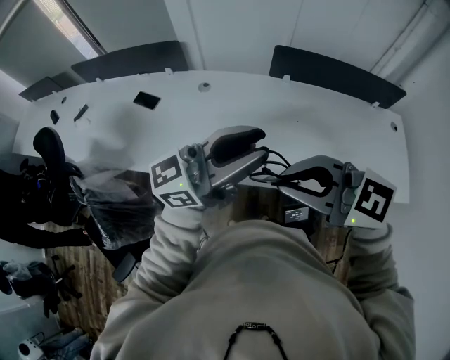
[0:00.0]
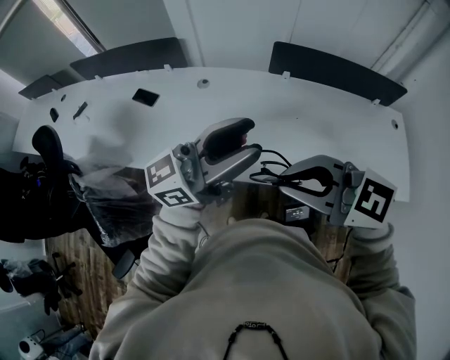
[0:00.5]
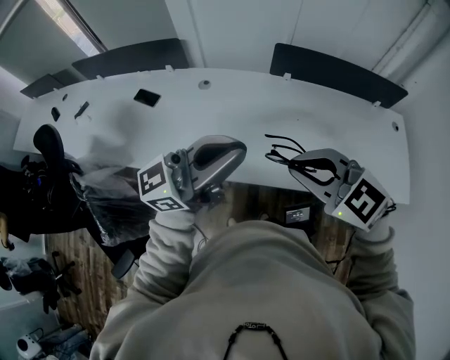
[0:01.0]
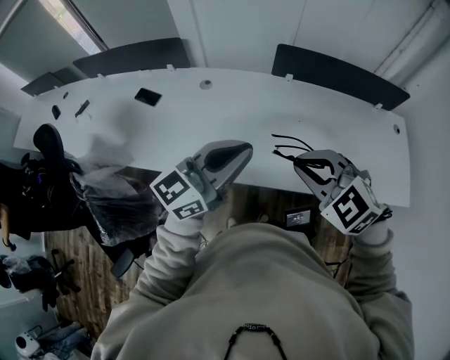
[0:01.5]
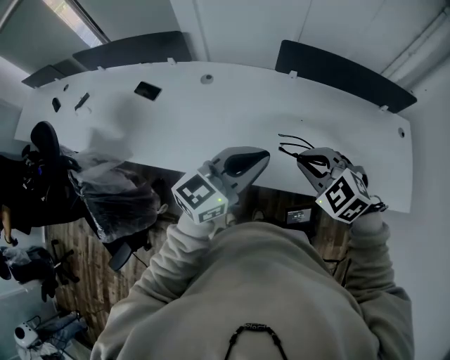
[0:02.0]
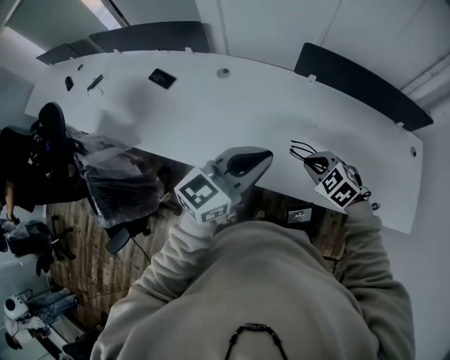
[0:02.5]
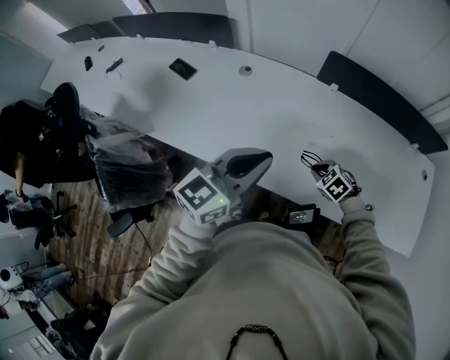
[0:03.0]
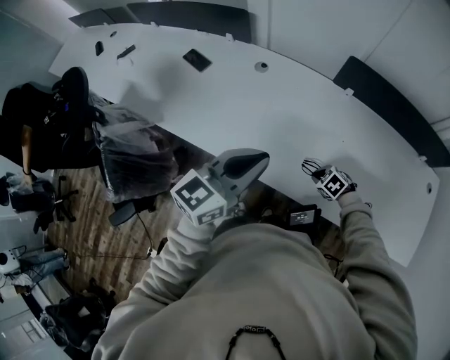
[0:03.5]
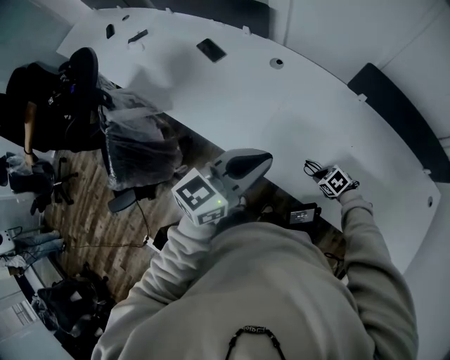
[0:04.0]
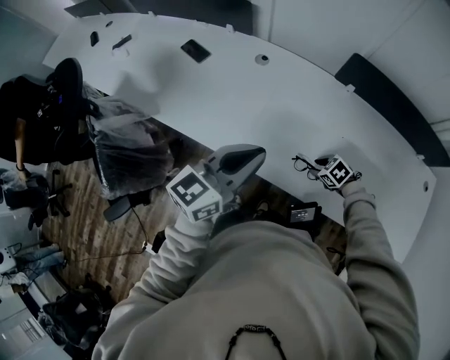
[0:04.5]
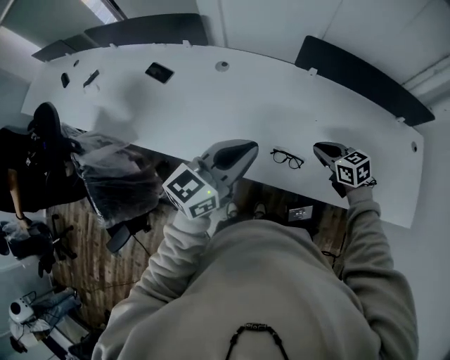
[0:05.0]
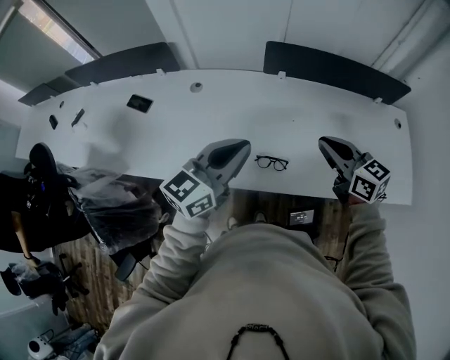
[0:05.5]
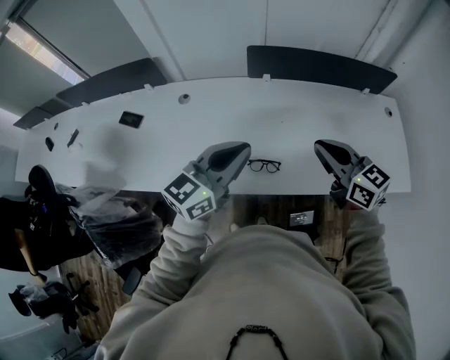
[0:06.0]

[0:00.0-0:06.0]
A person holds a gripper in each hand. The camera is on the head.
0:00.0 to 0:02.0: The two grippers go some 15 cm downward. The left gripper changes its angle by approximately 30 degrees, and closes its fingers; the right gripper tips its fingers downward by about 30 degrees.
0:02.0 to 0:04.0: The right gripper is displaced downward by about 35 cm, and turns by roughly 40 degrees. The left gripper ends up about 10 cm from where it was, and changes its angle by some 20 degrees.
0:04.0 to 0:06.0: The left gripper ends up approximately 15 cm from where it was, and changes its angle by about 20 degrees. Meanwhile the right gripper travels upward by roughly 40 cm, points its fingers approximately 60 degrees further upward, and opens, then closes again.

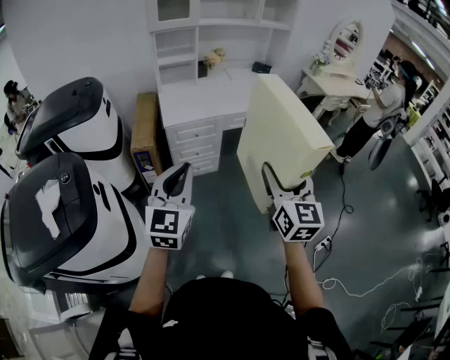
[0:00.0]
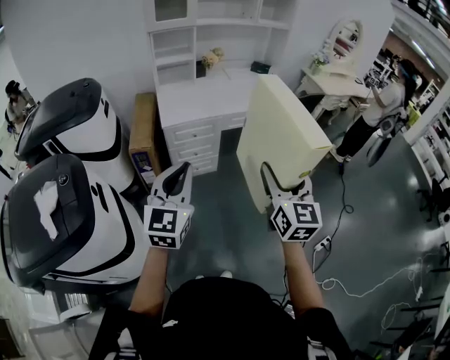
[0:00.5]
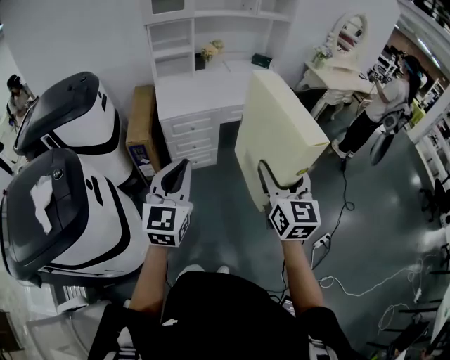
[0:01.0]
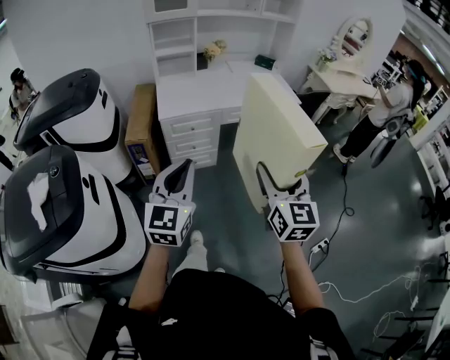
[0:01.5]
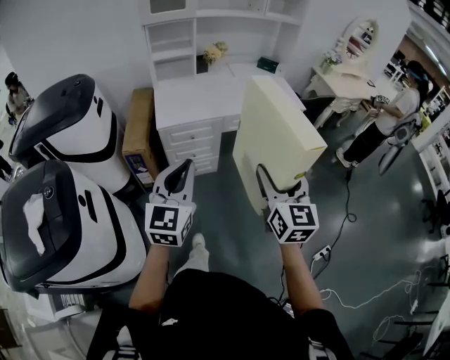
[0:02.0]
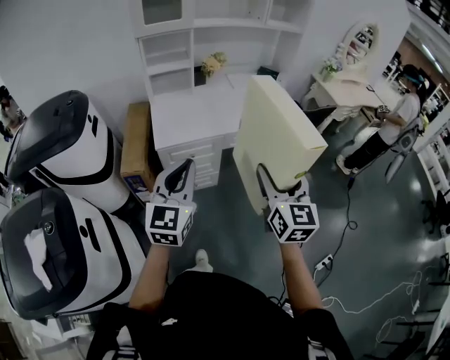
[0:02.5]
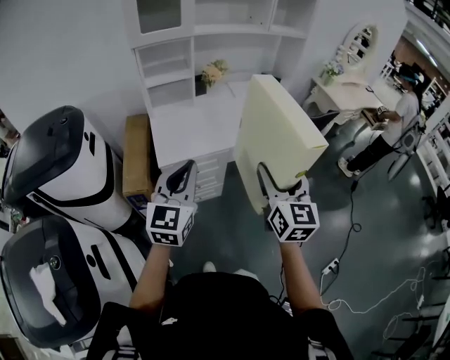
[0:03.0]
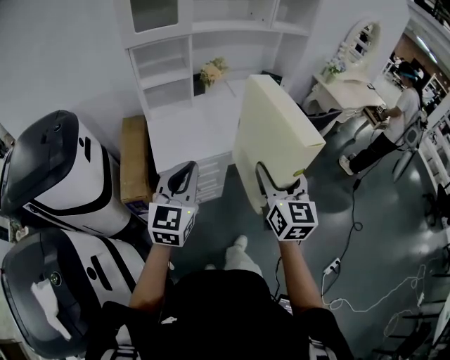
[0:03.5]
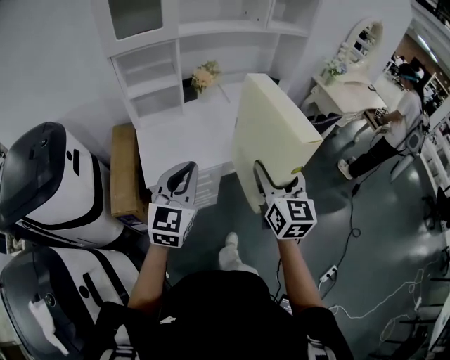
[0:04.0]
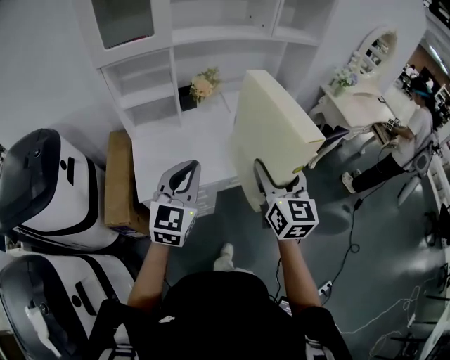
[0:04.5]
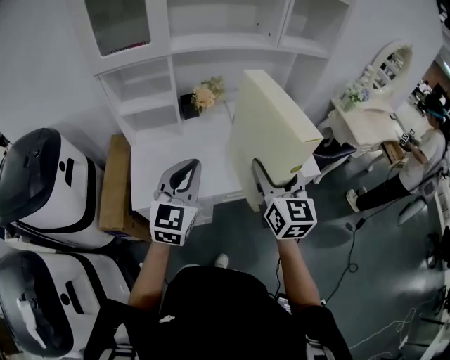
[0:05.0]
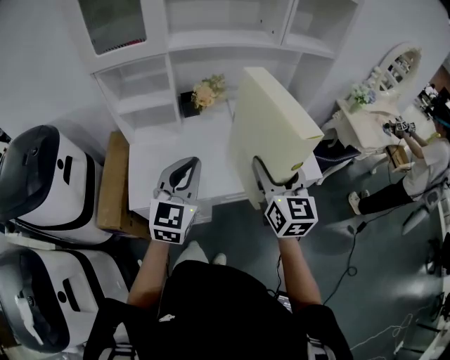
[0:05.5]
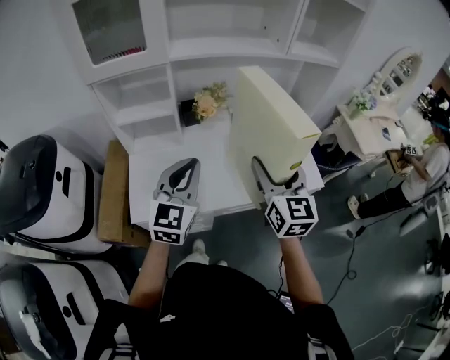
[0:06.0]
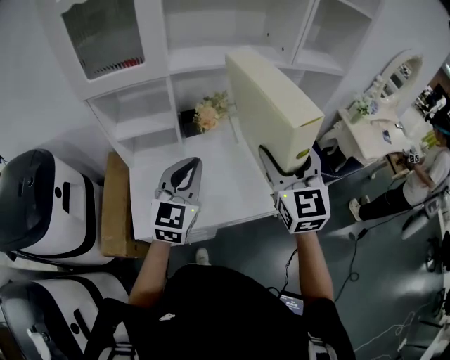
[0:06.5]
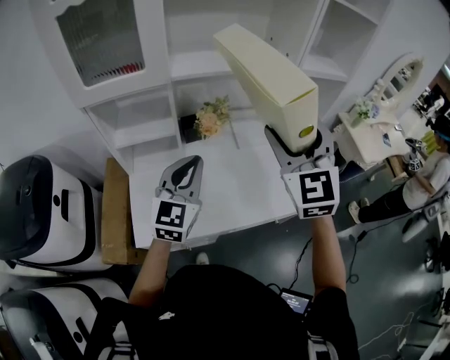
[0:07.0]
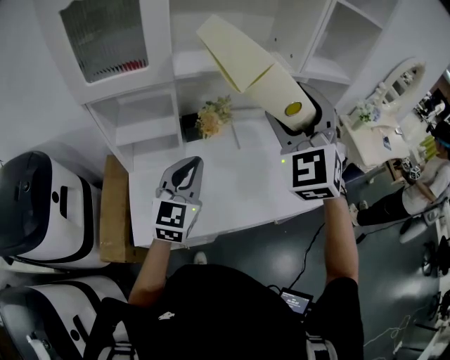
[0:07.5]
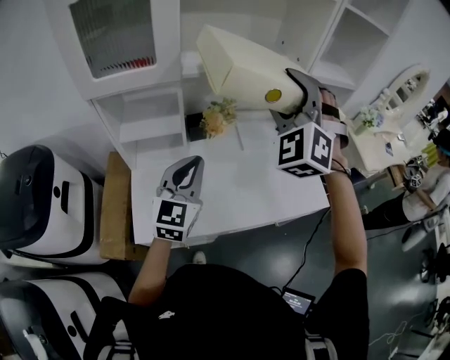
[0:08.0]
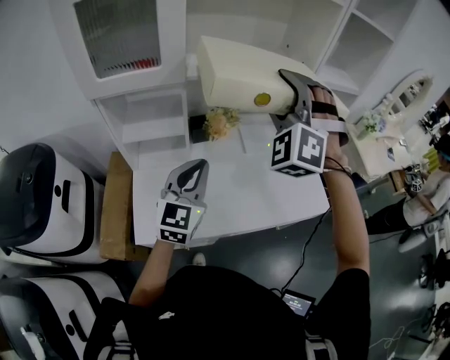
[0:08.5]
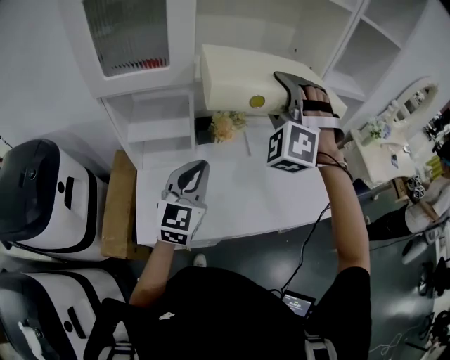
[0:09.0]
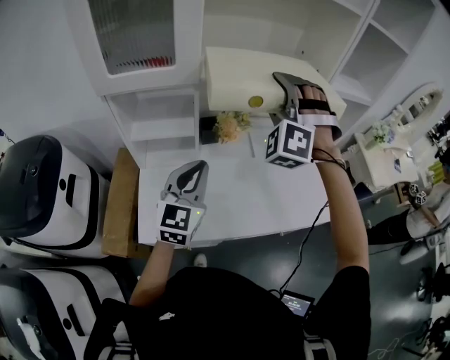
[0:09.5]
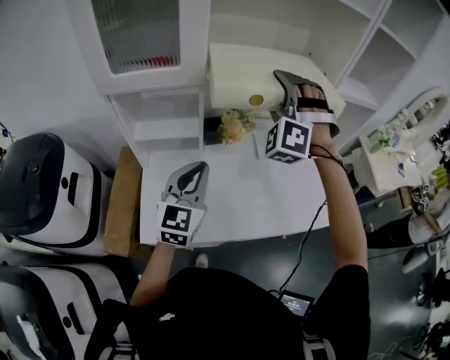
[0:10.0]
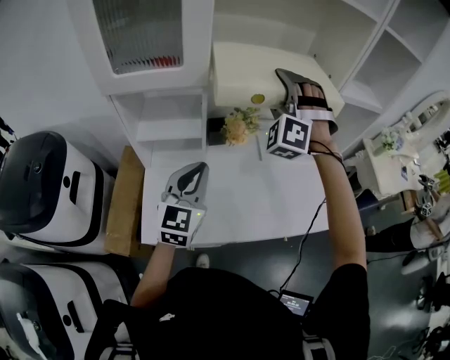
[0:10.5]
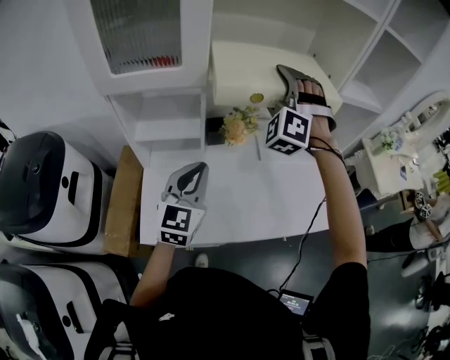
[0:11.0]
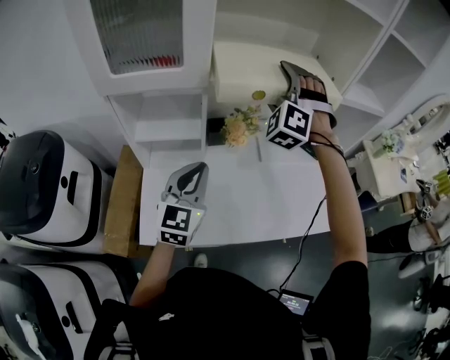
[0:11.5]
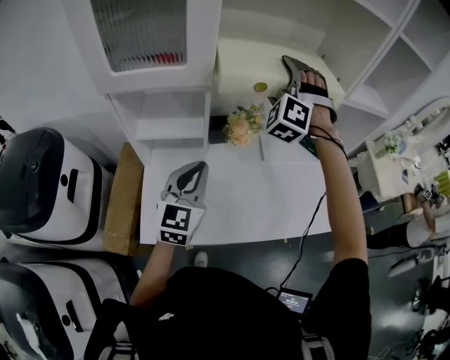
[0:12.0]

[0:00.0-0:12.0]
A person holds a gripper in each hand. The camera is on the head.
0:00.0 to 0:02.0: Both grippers travel together forward, about 10 cm.
0:02.0 to 0:04.0: The two grippers go about 35 cm forward.
0:04.0 to 0:06.0: Both grippers move forward, roughly 25 cm.
0:06.0 to 0:08.0: The right gripper travels forward, upward and to the left by about 25 cm, and rotates around the line of its fingers by roughly 70 degrees, counterclockwise from behind; the left gripper shifts about 10 cm forward.
0:08.0 to 0:10.0: The right gripper travels forward, to the left and downward by about 15 cm.
0:10.0 to 0:12.0: The right gripper is displaced forward by about 10 cm.

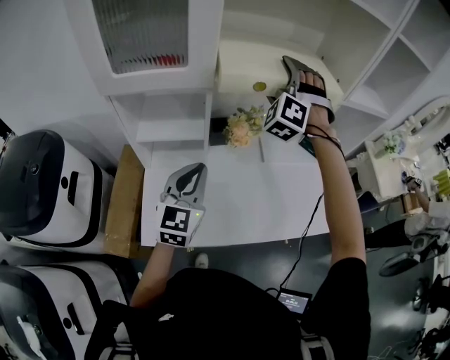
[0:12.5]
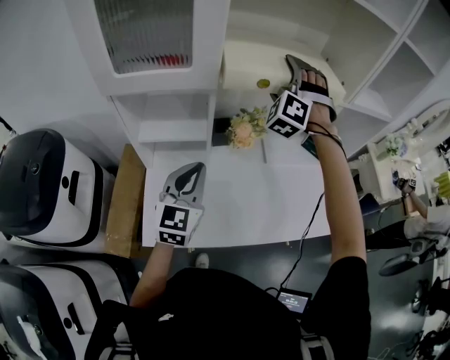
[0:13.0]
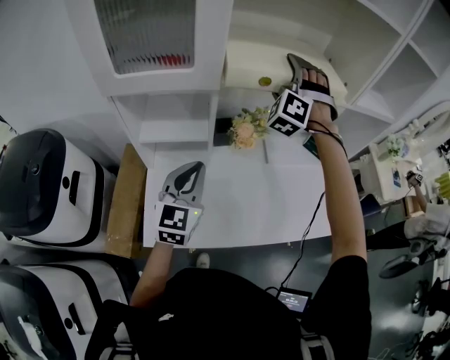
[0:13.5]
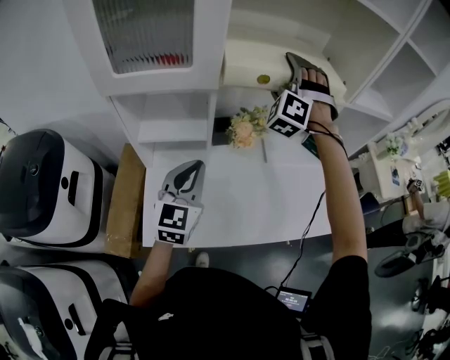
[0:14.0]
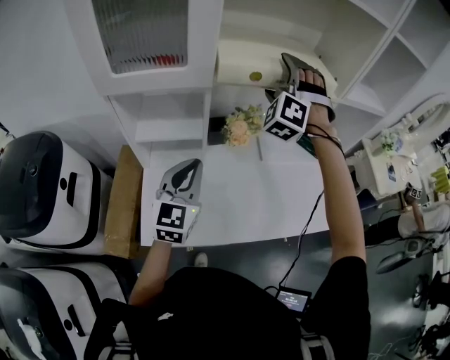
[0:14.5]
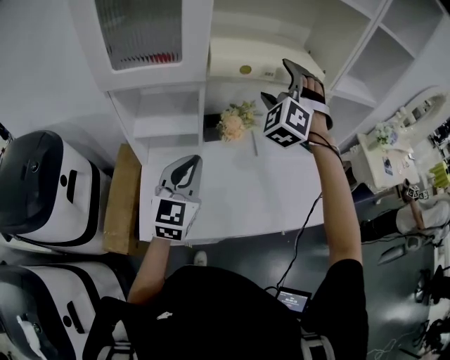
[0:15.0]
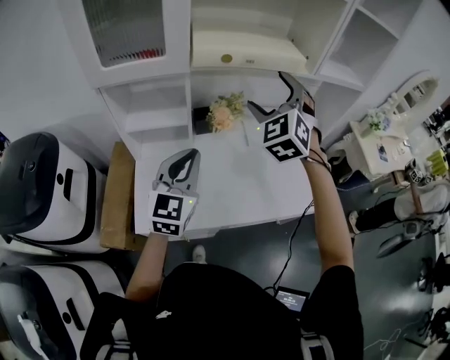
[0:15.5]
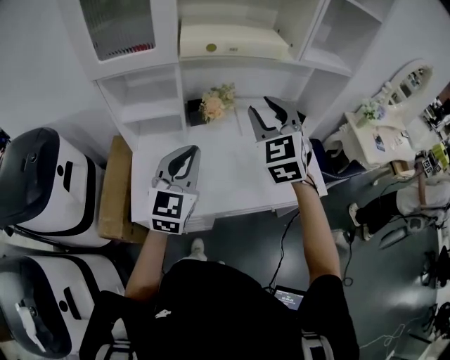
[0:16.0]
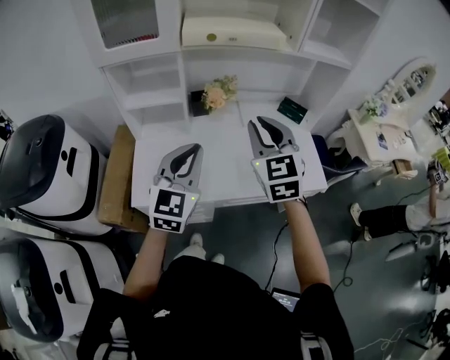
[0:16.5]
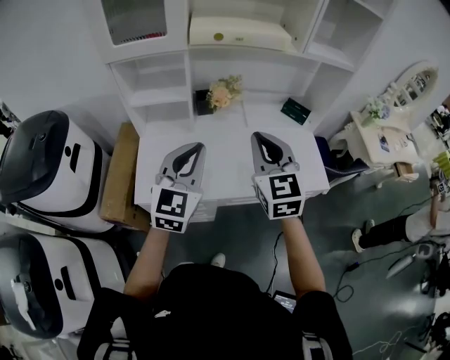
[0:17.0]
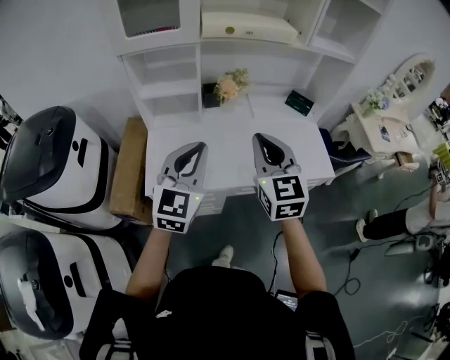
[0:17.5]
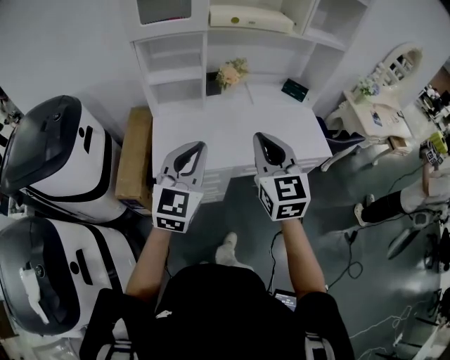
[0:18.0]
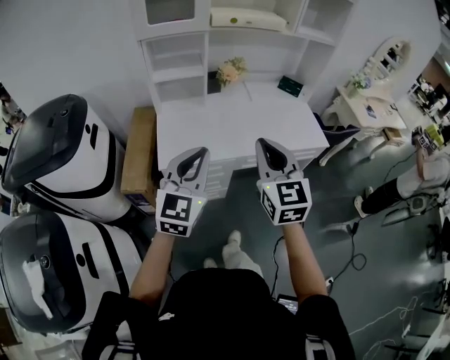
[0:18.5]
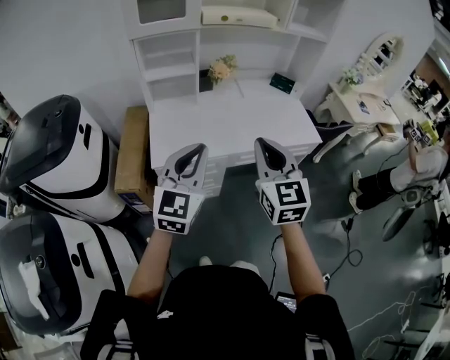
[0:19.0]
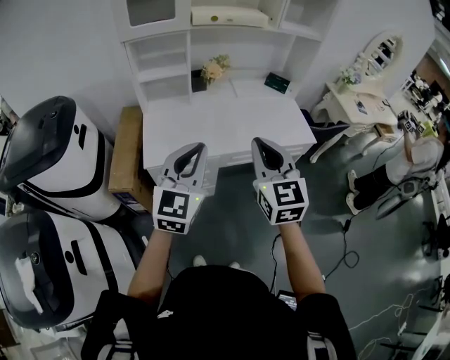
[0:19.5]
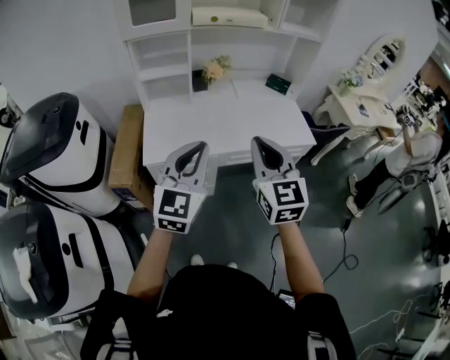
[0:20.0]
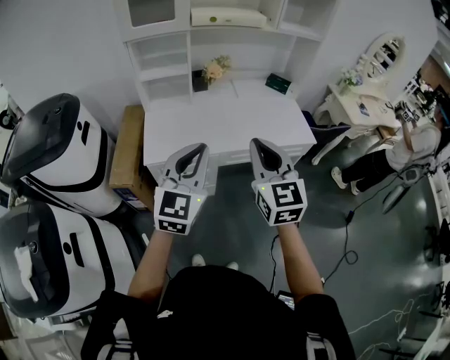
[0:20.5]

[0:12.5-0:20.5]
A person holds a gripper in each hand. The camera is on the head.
0:12.5 to 0:14.5: The grippers make only small movements.
0:14.5 to 0:16.5: The right gripper heads backward, covering roughly 30 cm, rolls clockwise, seen from behind, by roughly 60 degrees, and closes up, while the left gripper is displaced backward and to the right by roughly 20 cm.
0:16.5 to 0:18.5: The right gripper moves backward, roughly 30 cm, while the left gripper moves backward and to the left, approximately 25 cm.
0:18.5 to 0:20.5: Both grippers travel together to the right, about 10 cm.
